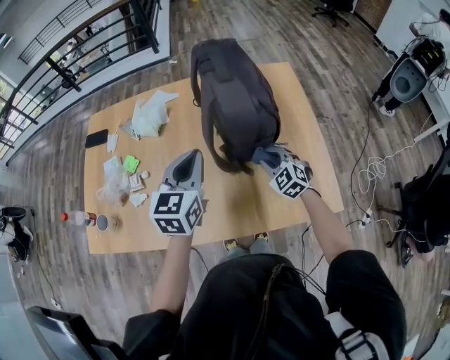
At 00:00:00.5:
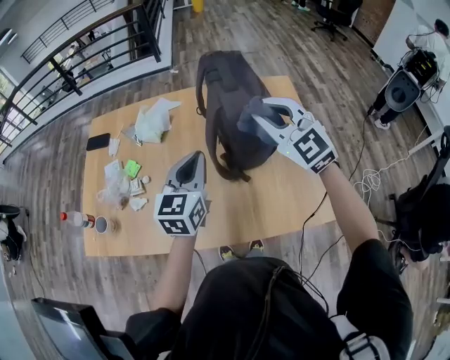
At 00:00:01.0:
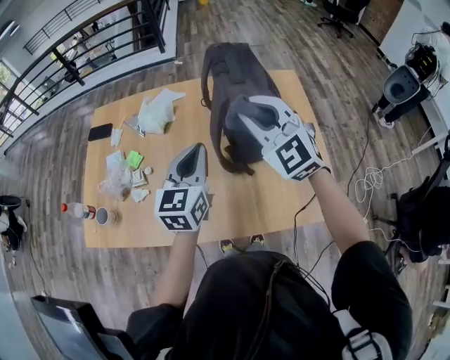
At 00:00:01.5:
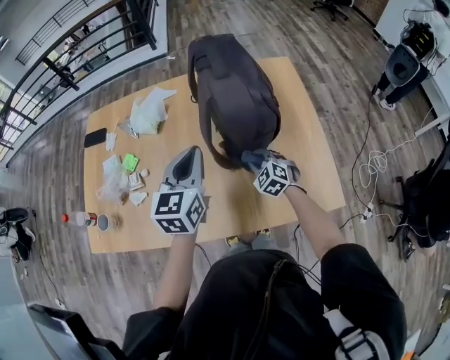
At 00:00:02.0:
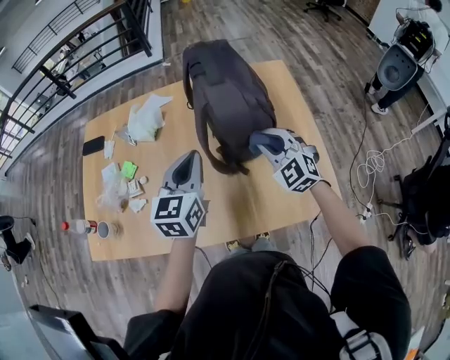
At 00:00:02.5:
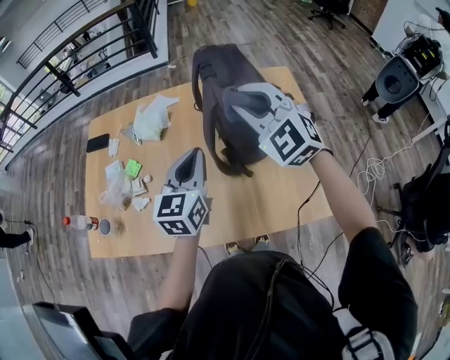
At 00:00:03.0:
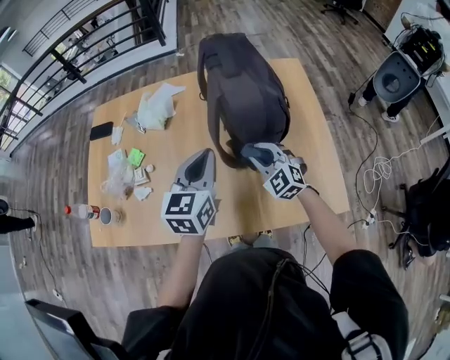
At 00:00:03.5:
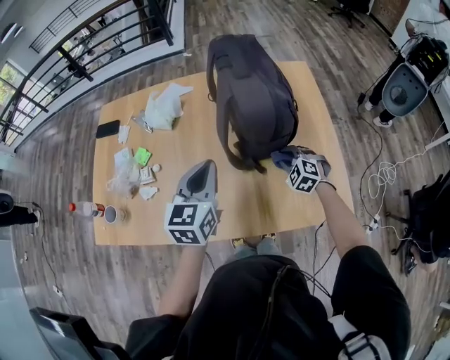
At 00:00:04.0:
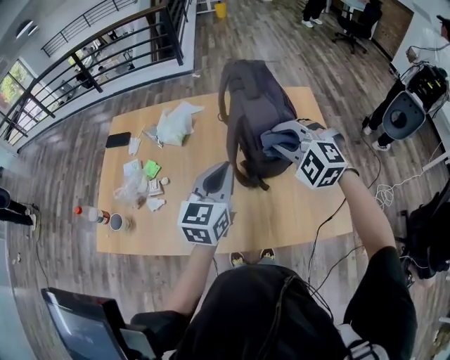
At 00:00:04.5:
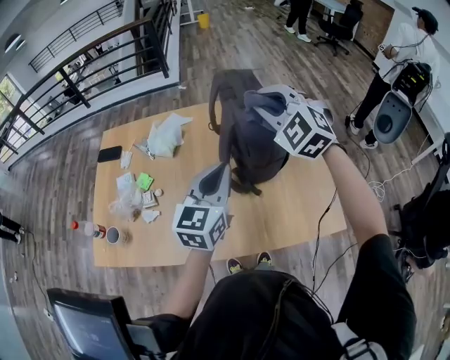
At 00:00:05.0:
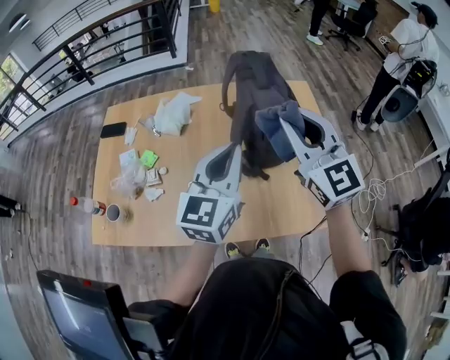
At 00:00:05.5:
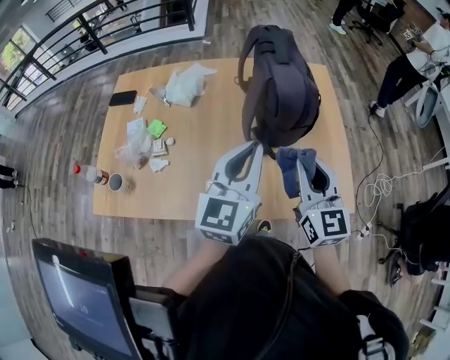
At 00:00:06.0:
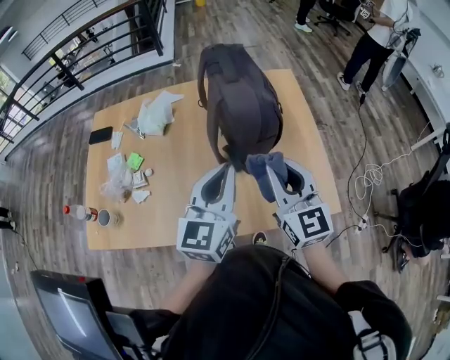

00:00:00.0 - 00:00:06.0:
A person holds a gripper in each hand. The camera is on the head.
00:00:00.0 - 00:00:02.0: The right gripper swings up and down, some 35 cm each way, with 2 reversals.
00:00:02.0 - 00:00:04.0: The right gripper goes up and down, some 35 cm each way, reversing 2 times, and turns by approximately 30 degrees.
00:00:04.0 - 00:00:06.0: The left gripper moves backward, about 5 cm. Meanwhile the right gripper moves backward, roughly 10 cm, and rolls clockwise, seen from behind, by approximately 60 degrees.

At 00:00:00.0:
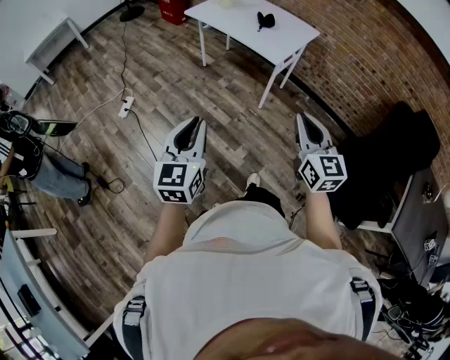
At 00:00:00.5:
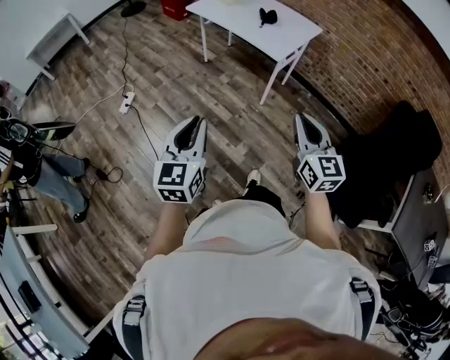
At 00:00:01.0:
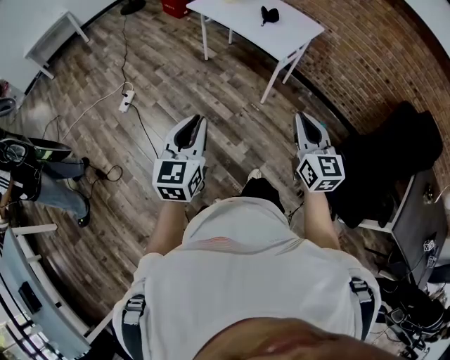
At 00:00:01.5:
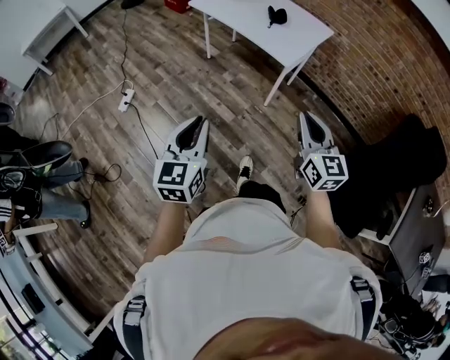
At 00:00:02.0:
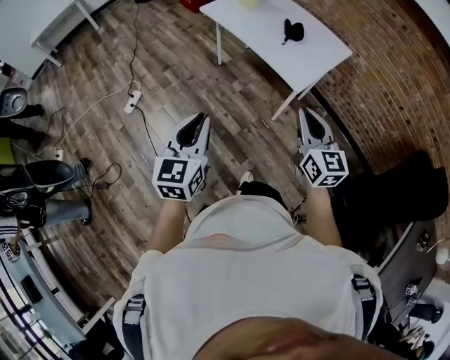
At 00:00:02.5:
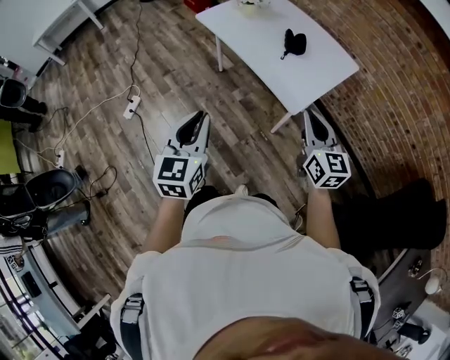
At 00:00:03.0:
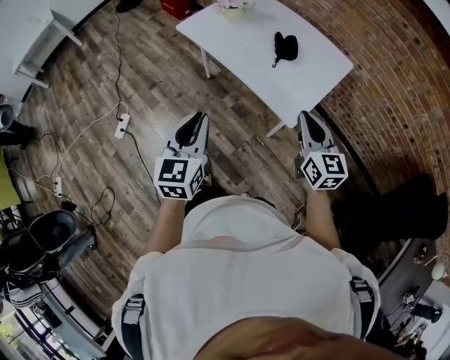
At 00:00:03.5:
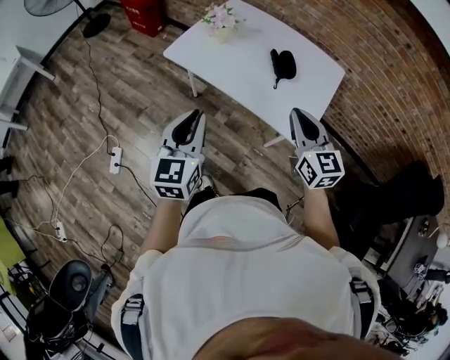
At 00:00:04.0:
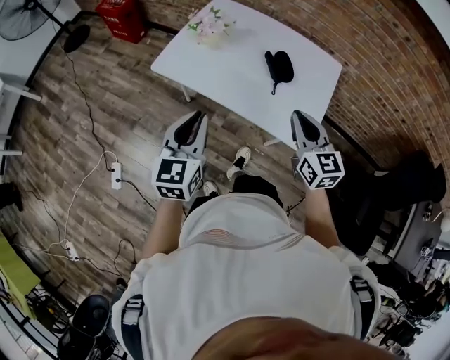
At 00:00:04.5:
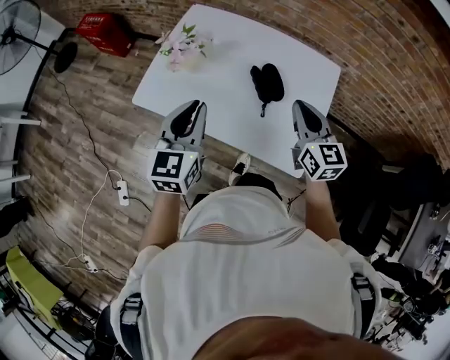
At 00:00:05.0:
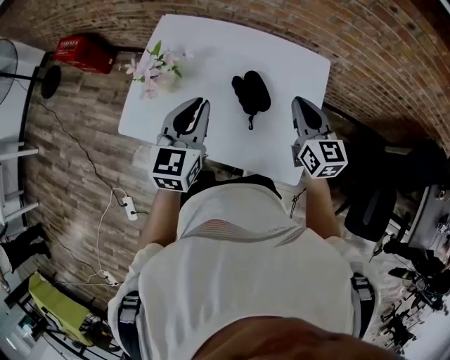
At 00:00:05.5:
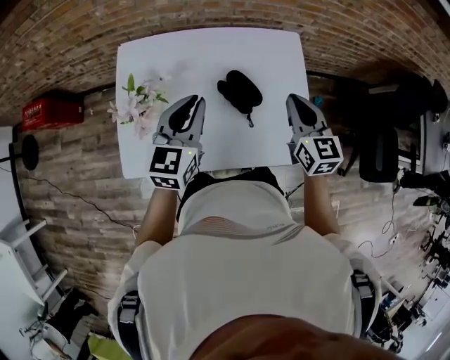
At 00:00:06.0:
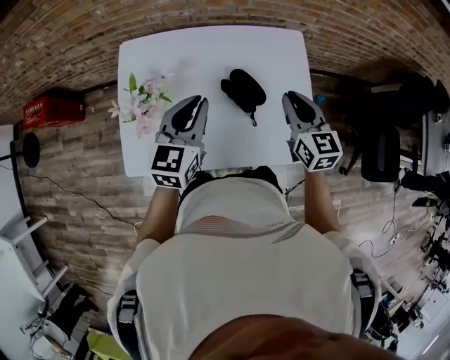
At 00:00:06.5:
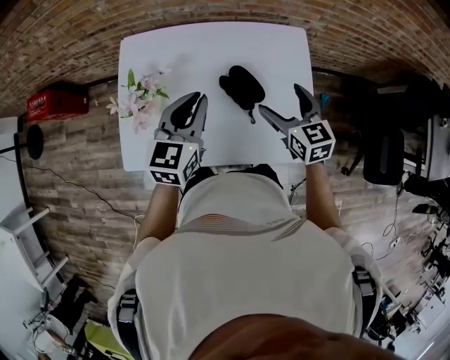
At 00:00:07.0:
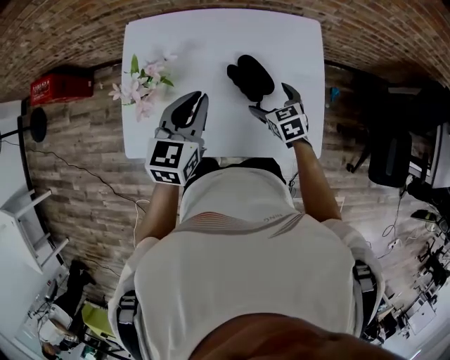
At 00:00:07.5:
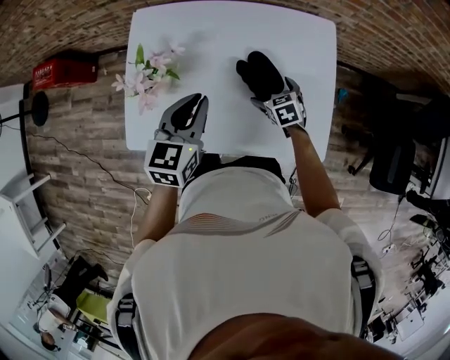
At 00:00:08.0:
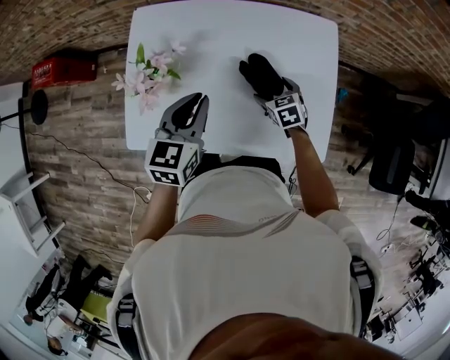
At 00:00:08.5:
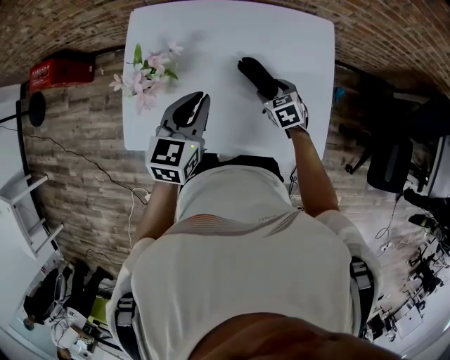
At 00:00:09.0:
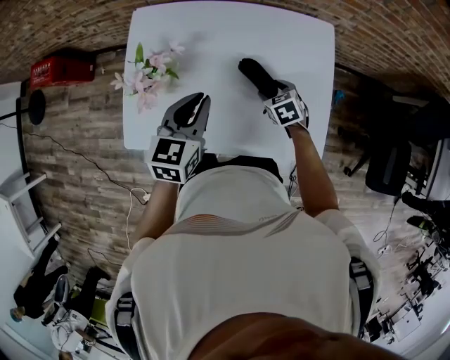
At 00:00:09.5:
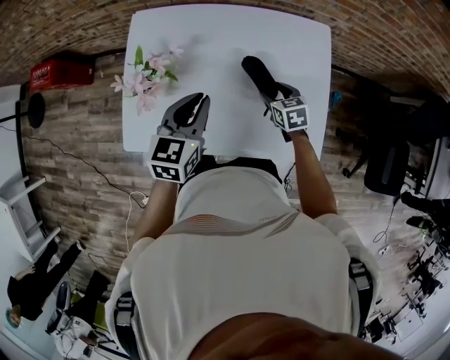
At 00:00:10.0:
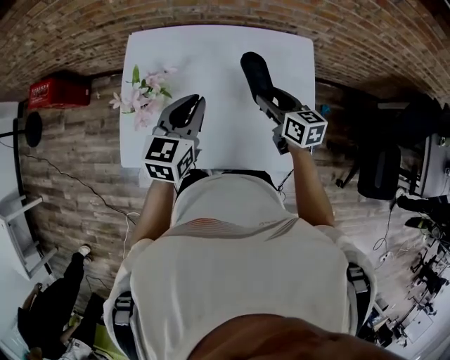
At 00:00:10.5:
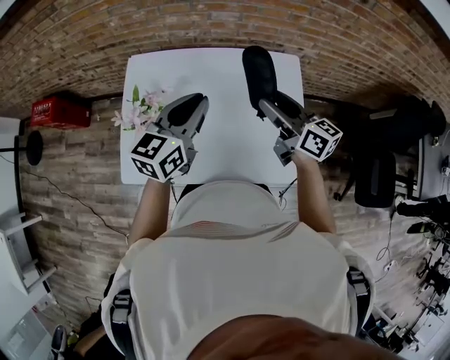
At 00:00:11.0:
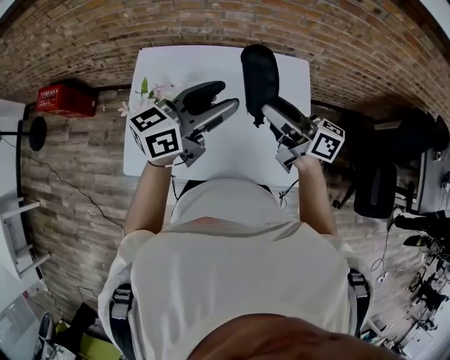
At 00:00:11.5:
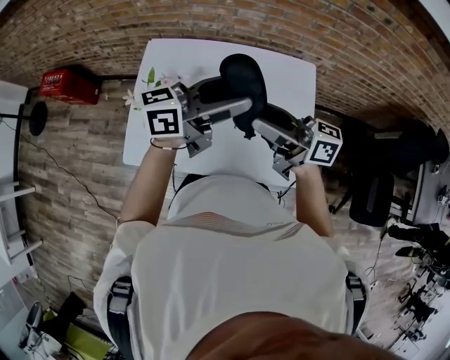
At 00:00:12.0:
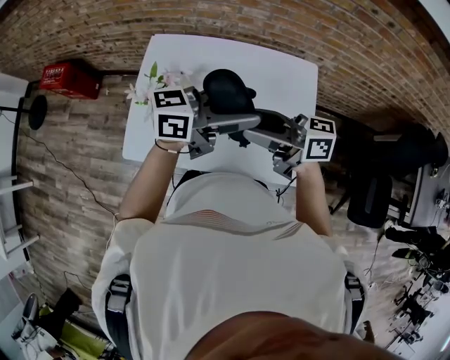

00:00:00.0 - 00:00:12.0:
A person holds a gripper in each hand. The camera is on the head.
00:00:00.0 - 00:00:02.0: Both grippers move forward, approximately 25 cm.
00:00:02.0 - 00:00:04.0: Both grippers move forward, some 40 cm. The left gripper turns by about 20 degrees.
00:00:04.0 - 00:00:06.0: The right gripper changes place by some 25 cm, and rotates about 30 degrees, while the left gripper shifts by some 35 cm, and swivels some 40 degrees.
00:00:06.0 - 00:00:08.0: The left gripper heads downward, covering roughly 5 cm. The right gripper travels downward by approximately 25 cm, angles its fingers downward, by about 30 degrees, and opens its fingers.
00:00:08.0 - 00:00:10.0: The right gripper travels upward by some 15 cm, turns by roughly 30 degrees, and closes up.
00:00:10.0 - 00:00:12.0: The grippers both shift upward by some 15 cm. The right gripper angles its fingers upward, by about 30 degrees, while the left gripper swivels roughly 50 degrees, and opens.

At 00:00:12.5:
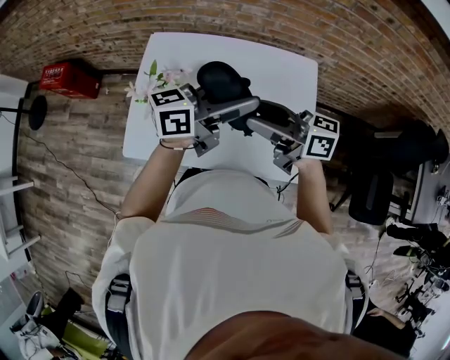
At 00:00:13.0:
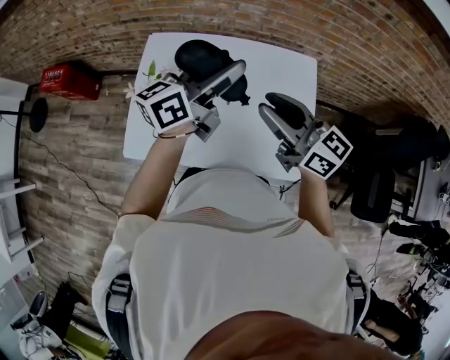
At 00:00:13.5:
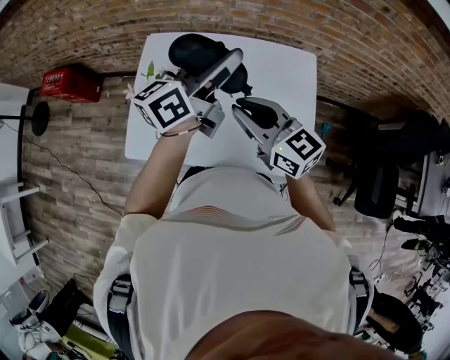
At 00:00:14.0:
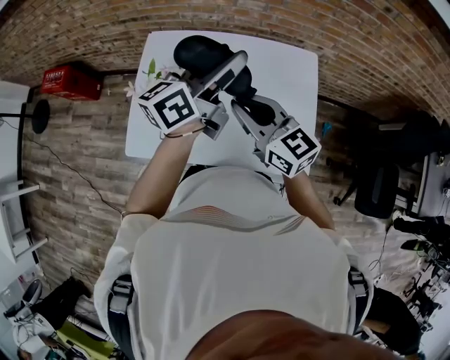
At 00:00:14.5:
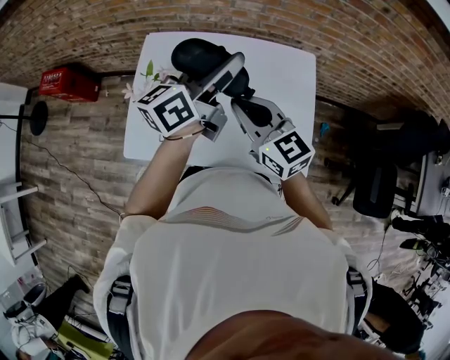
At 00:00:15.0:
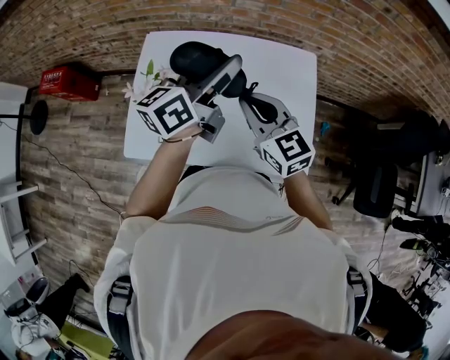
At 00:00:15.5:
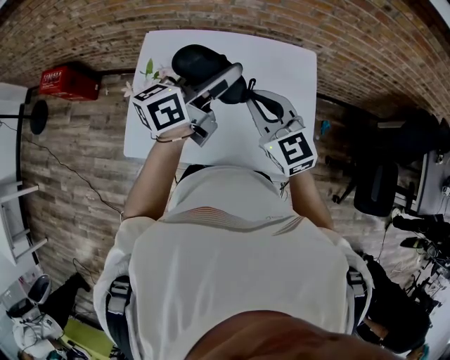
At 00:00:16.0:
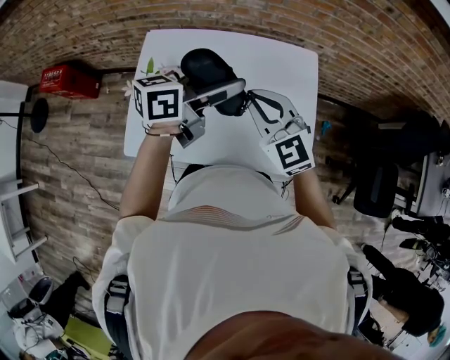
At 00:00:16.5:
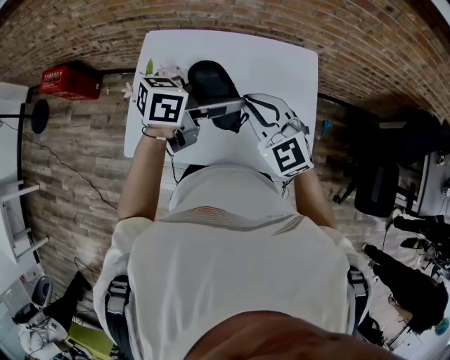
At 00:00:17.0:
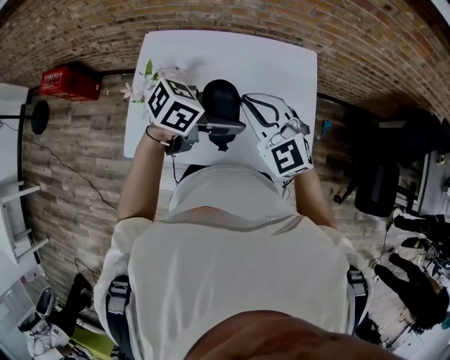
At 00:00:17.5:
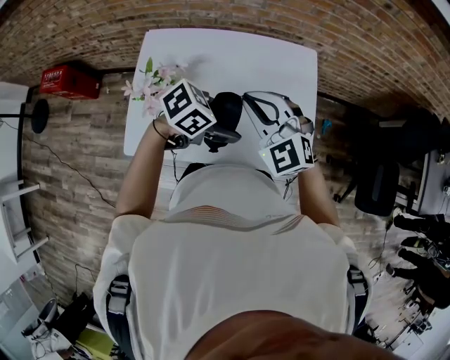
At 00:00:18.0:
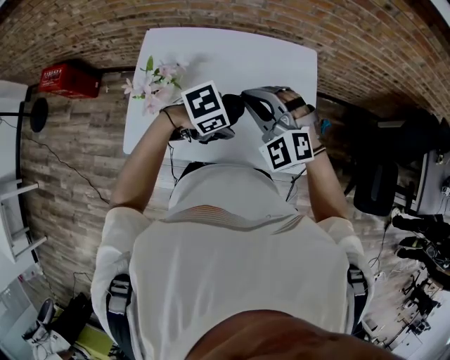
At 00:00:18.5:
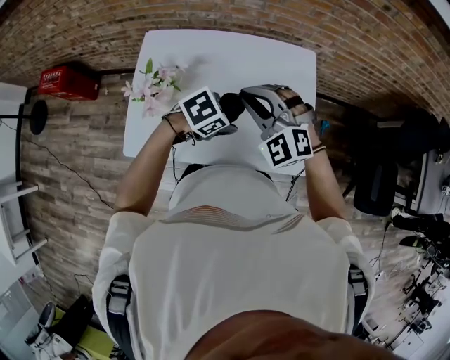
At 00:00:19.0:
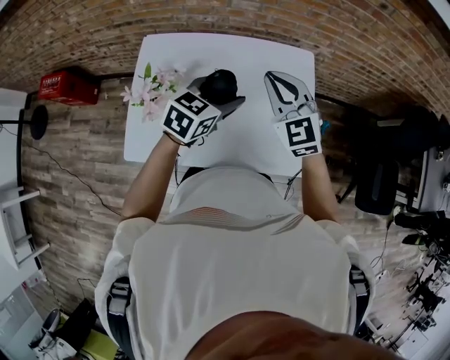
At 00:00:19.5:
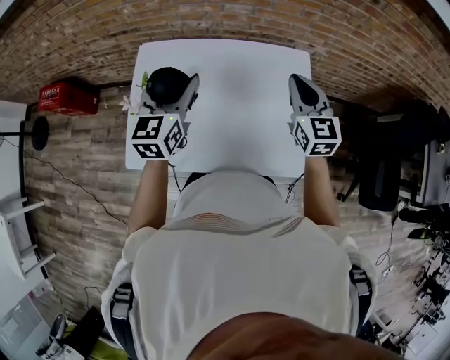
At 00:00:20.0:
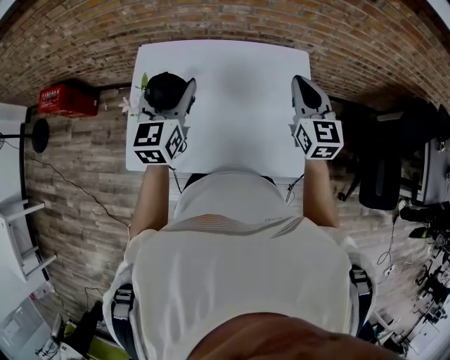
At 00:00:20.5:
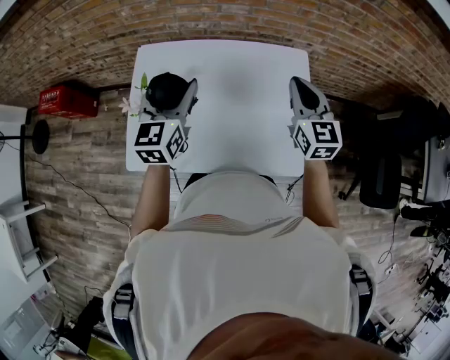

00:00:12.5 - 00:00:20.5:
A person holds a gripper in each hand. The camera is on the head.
00:00:12.5 - 00:00:14.5: The left gripper shifts by about 10 cm, and rotates about 30 degrees; the right gripper rotates roughly 40 degrees, and closes its fingers.
00:00:14.5 - 00:00:16.5: The left gripper travels downward and backward by about 10 cm, and swivels some 40 degrees. The right gripper swivels some 30 degrees.
00:00:16.5 - 00:00:18.5: The right gripper swivels about 30 degrees, while the left gripper travels downward by approximately 15 cm, and tips its fingers downward by about 40 degrees.
00:00:18.5 - 00:00:20.5: The right gripper shifts by about 15 cm, and rotates around the line of its fingers by roughly 50 degrees, clockwise from behind. The left gripper changes place by roughly 20 cm, and tips its fingers upward by approximately 40 degrees.
